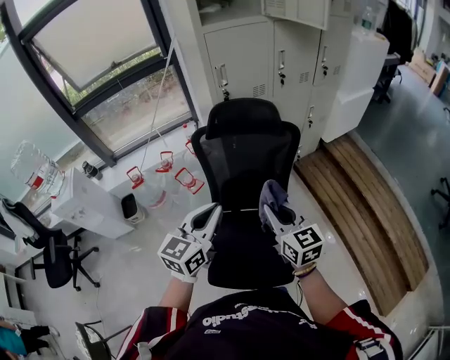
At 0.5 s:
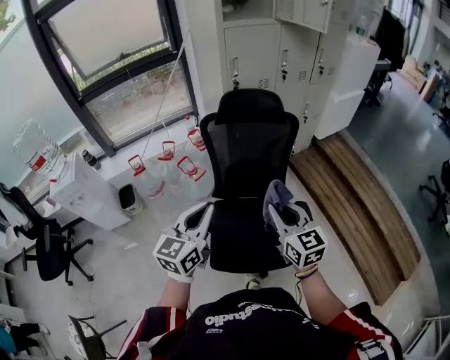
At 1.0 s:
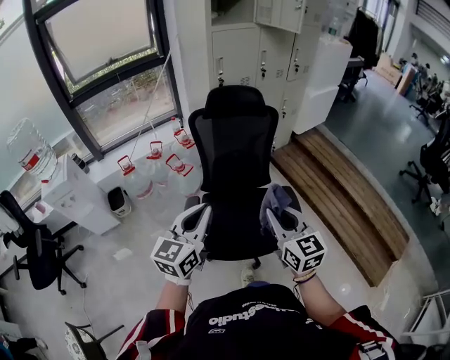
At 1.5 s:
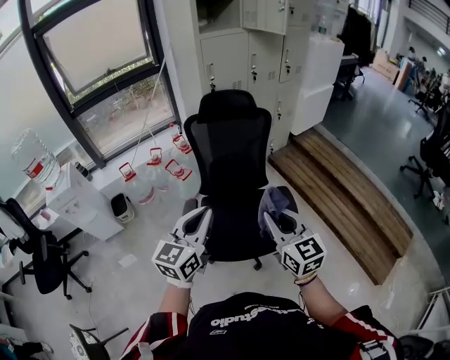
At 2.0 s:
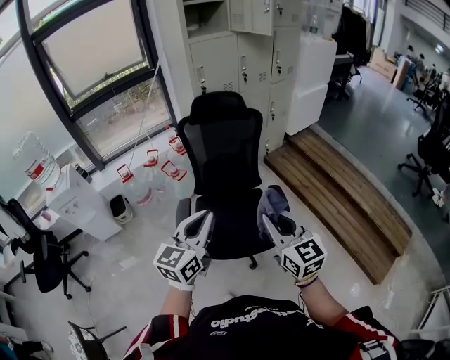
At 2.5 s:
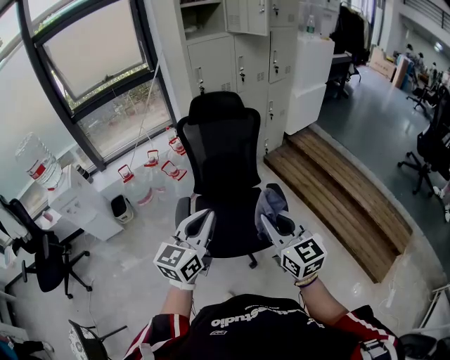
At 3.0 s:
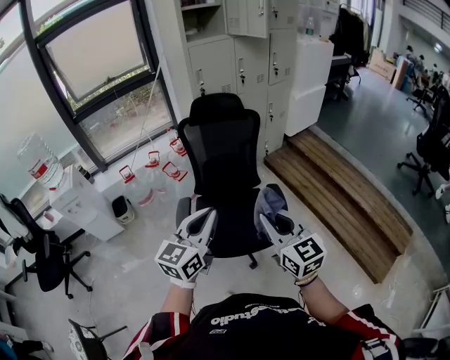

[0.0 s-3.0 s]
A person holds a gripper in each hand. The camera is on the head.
0.0 to 1.5 s: Both grippers move backward, roughly 30 cm.
1.5 to 3.0 s: The right gripper is displaced backward and to the right by roughly 10 cm, while the left gripper heads to the right and backward, covering approximately 10 cm.

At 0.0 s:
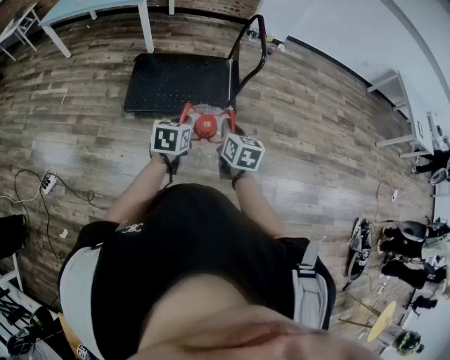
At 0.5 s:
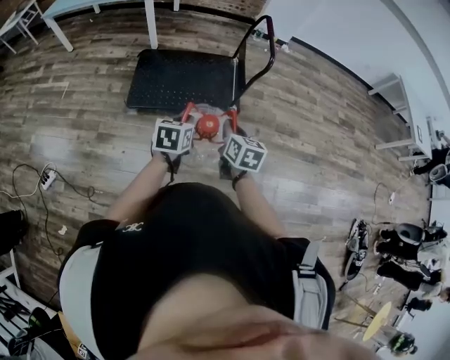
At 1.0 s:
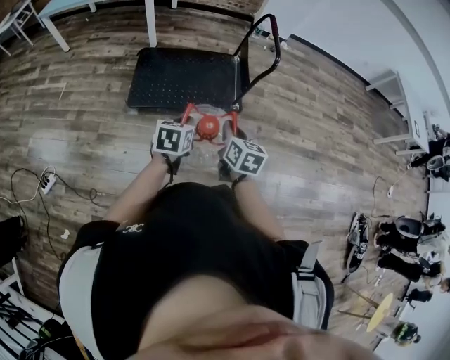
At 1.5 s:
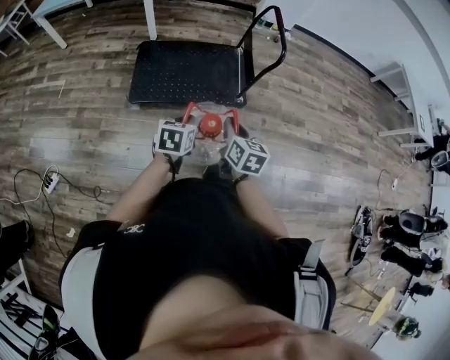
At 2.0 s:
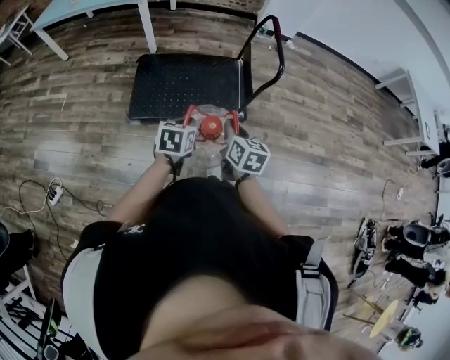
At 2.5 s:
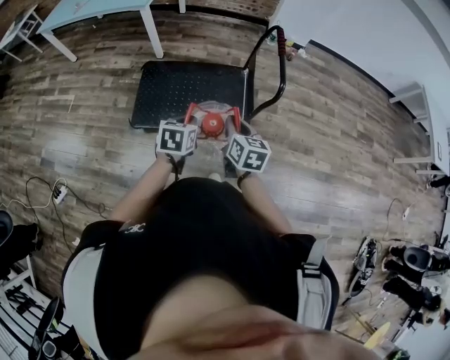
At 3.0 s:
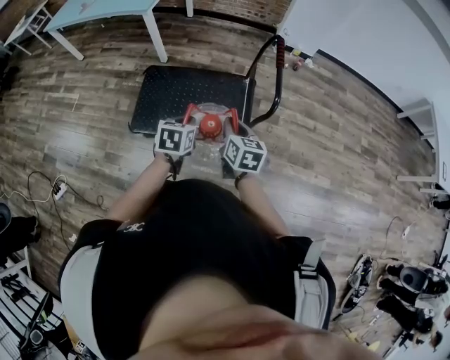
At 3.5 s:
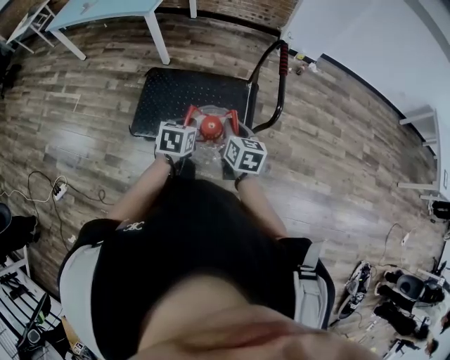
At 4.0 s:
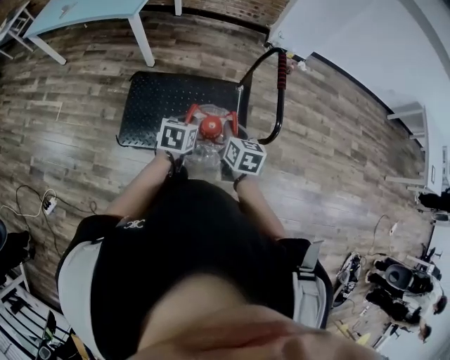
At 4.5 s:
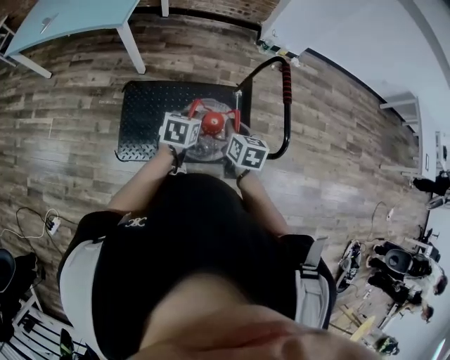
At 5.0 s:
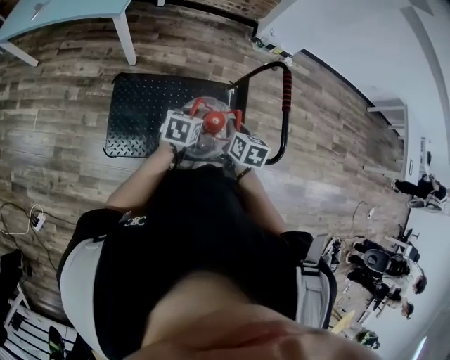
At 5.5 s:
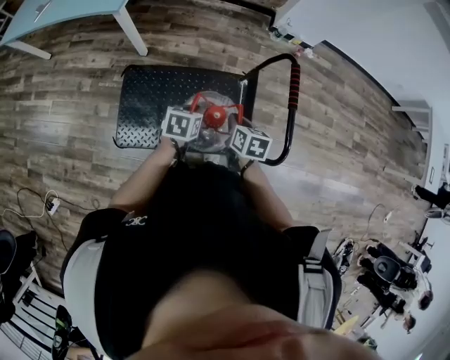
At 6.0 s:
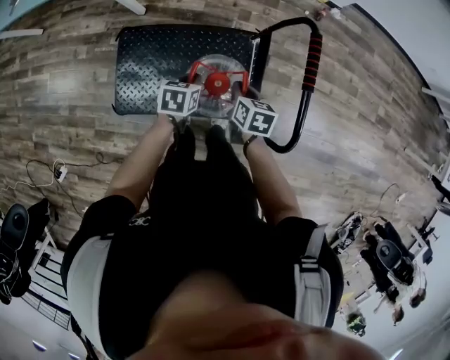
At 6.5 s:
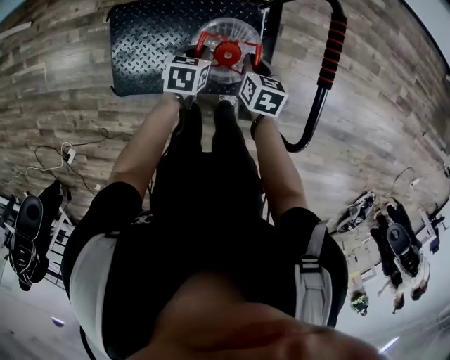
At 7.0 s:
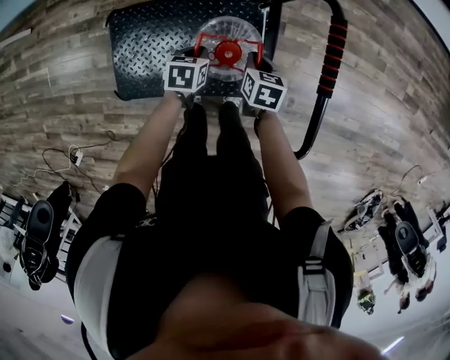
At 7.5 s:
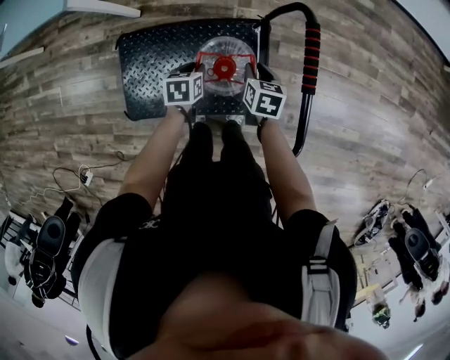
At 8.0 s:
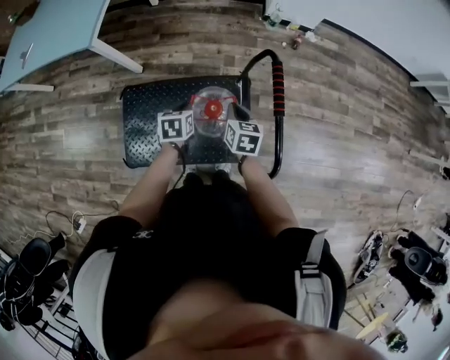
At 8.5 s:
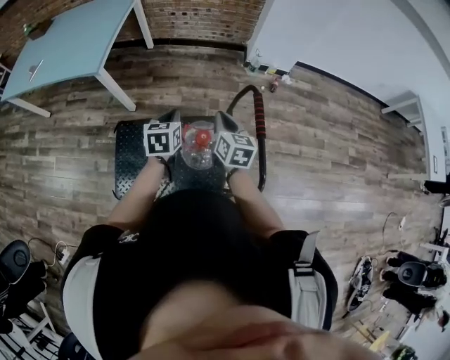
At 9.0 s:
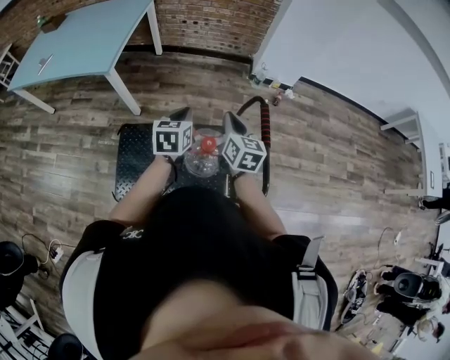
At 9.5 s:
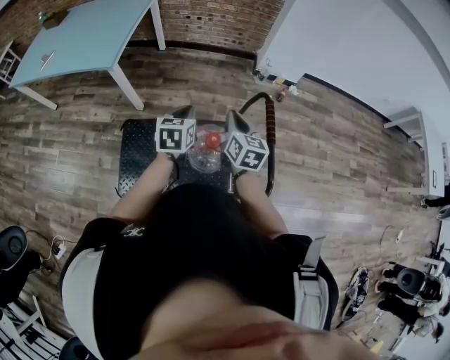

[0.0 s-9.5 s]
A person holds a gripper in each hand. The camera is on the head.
0.0 to 2.0 s: The grippers both shift forward and to the left by approximately 10 cm.
2.0 to 4.0 s: The grippers both shift forward by about 25 cm.
4.0 to 5.5 s: Both grippers move forward and downward, some 15 cm.
5.5 to 7.5 s: The right gripper goes some 15 cm downward, forward and to the right, while the left gripper moves downward and forward, approximately 15 cm, and opens its fingers.
7.5 to 9.5 s: The grippers both shift upward by approximately 25 cm. The left gripper swivels roughly 30 degrees, and closes up. The right gripper tilts its fingers about 30 degrees upward, and closes up.

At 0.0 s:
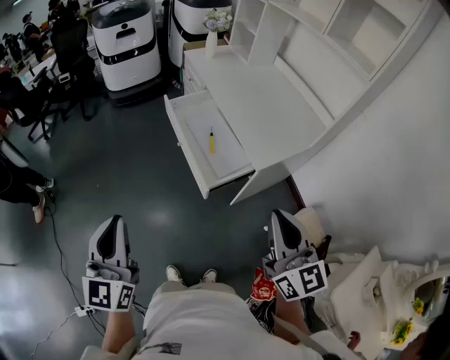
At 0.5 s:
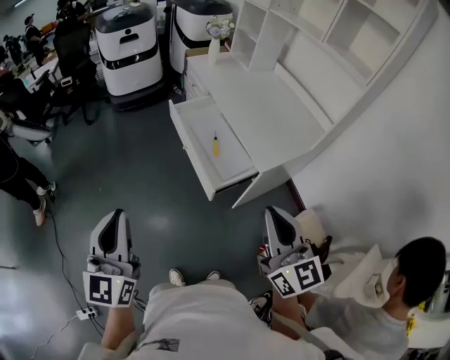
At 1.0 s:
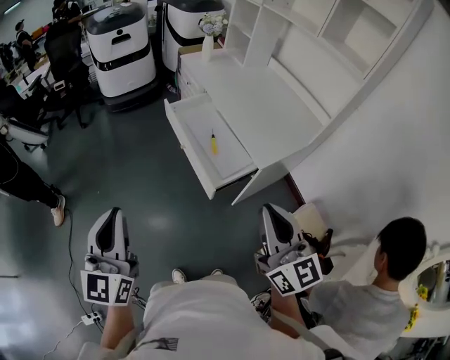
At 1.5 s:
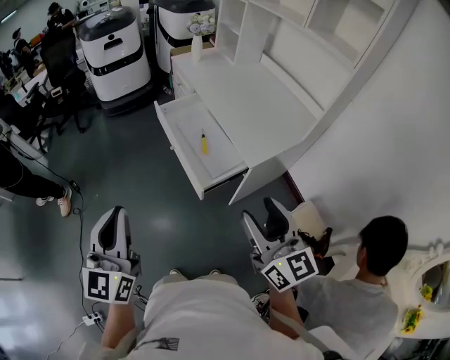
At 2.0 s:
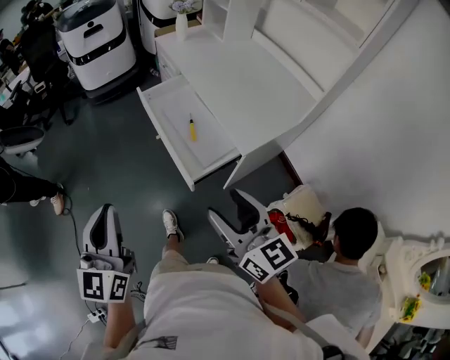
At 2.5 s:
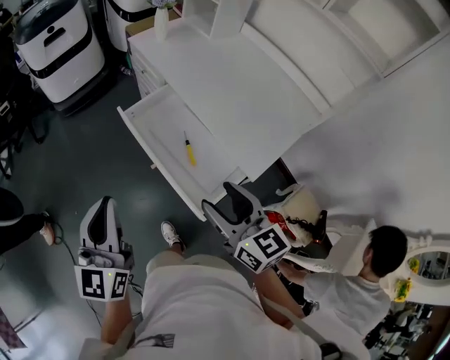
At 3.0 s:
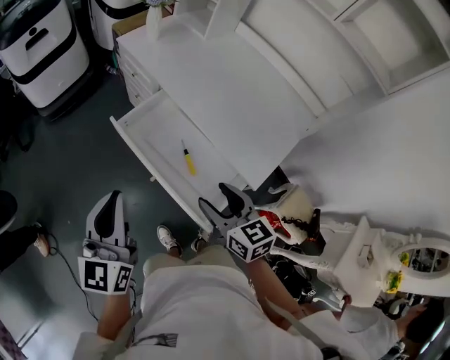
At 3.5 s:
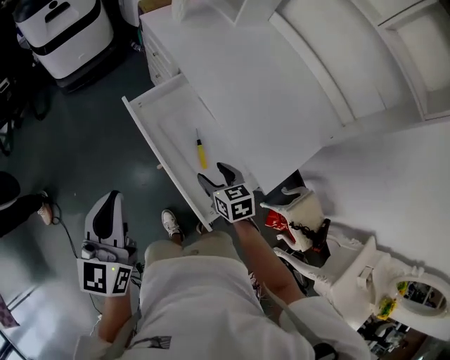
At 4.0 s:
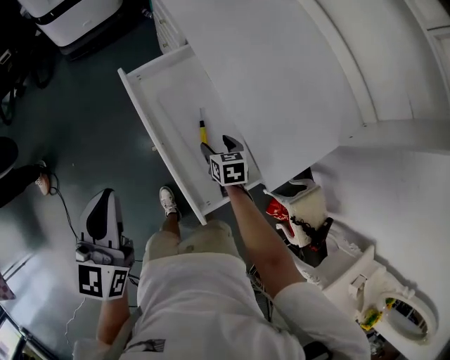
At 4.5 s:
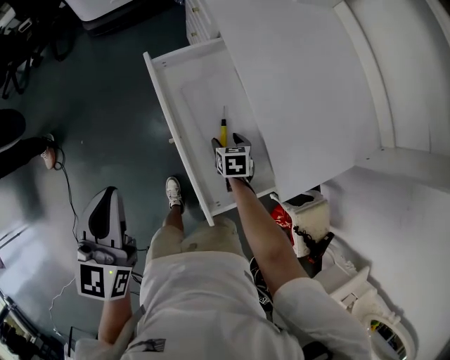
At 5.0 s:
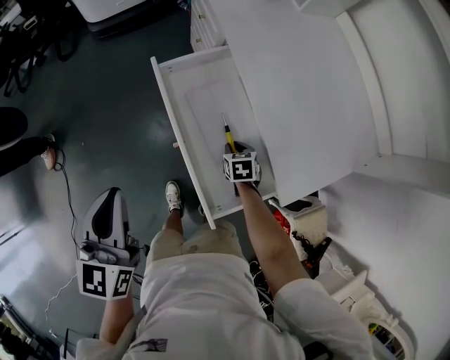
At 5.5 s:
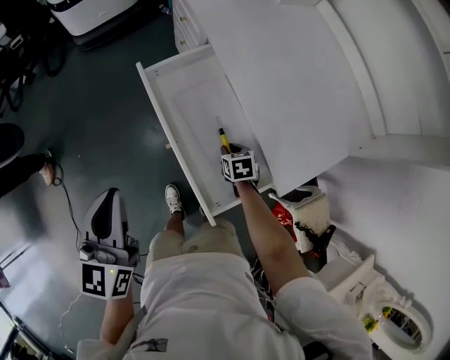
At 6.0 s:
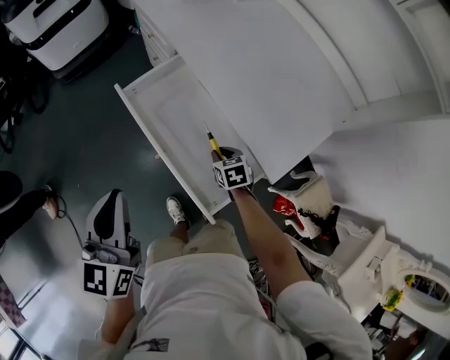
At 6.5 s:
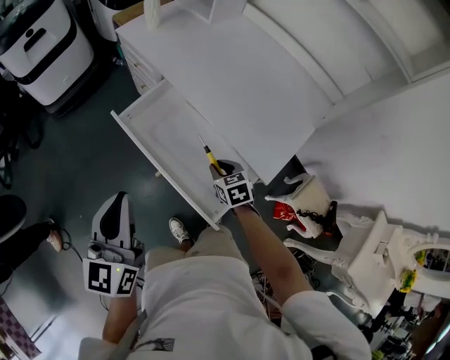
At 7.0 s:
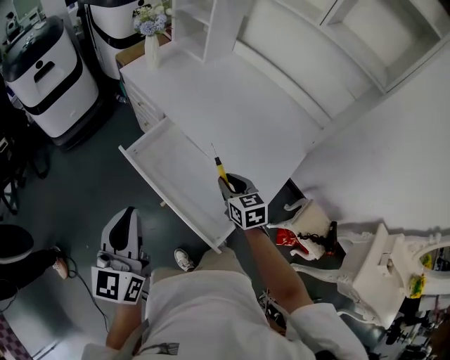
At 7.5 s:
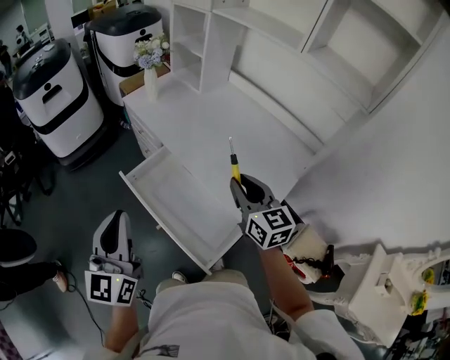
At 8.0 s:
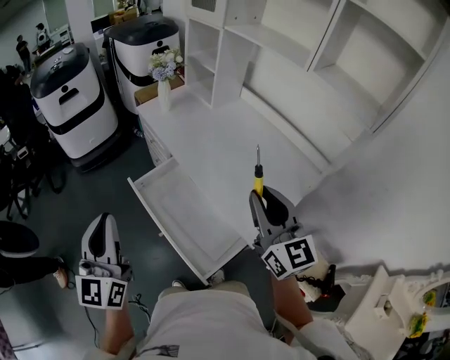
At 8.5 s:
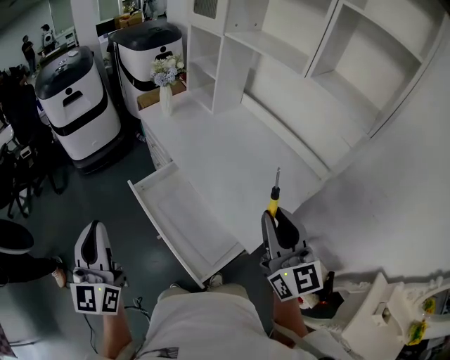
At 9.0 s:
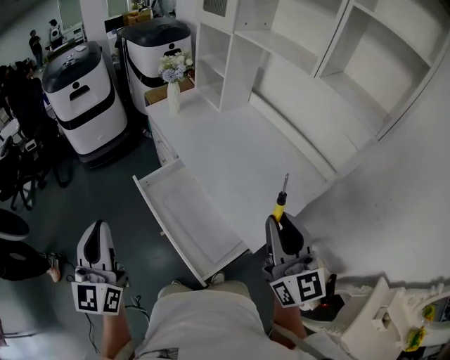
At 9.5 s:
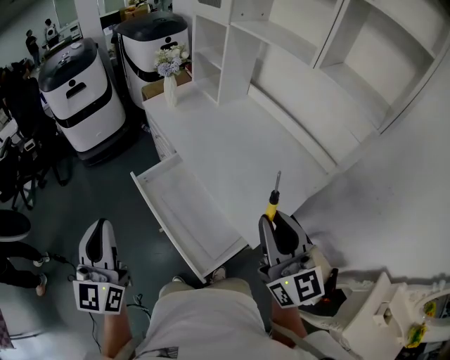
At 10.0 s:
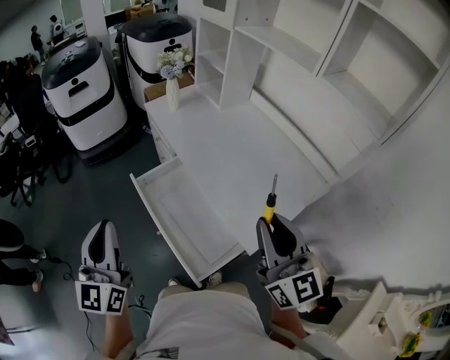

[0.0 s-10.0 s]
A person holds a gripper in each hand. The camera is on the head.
0.0 to 2.0 s: The right gripper heads downward, forward and to the left, covering some 10 cm, and opens. The left gripper travels forward by some 5 cm.
2.0 to 4.0 s: The left gripper moves forward, about 35 cm, while the right gripper moves forward and downward, roughly 60 cm, and tilts its fingers about 50 degrees downward.
4.0 to 6.0 s: The right gripper closes its fingers.
6.0 to 8.0 s: The right gripper goes some 50 cm upward, and tilts its fingers approximately 60 degrees upward. The left gripper is displaced upward by some 15 cm, and swivels roughly 20 degrees.
8.0 to 10.0 s: The right gripper ends up about 5 cm from where it was.

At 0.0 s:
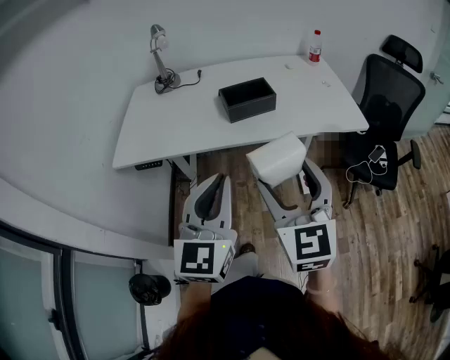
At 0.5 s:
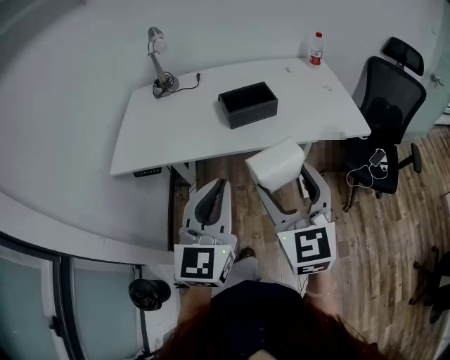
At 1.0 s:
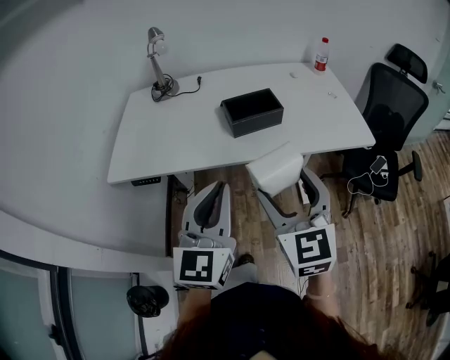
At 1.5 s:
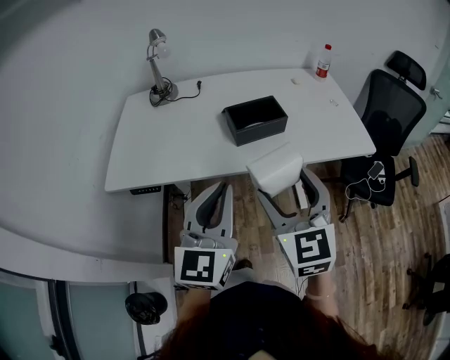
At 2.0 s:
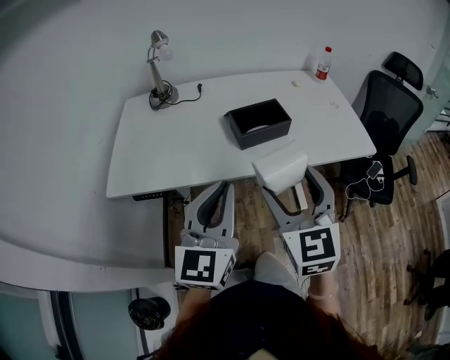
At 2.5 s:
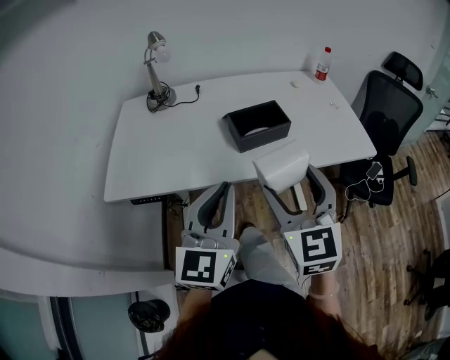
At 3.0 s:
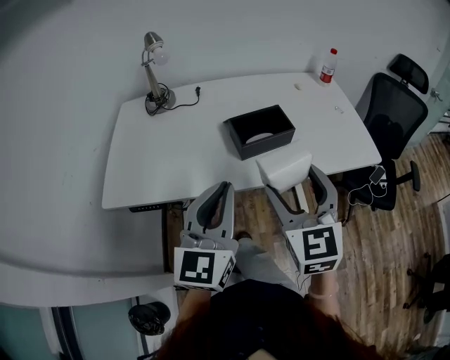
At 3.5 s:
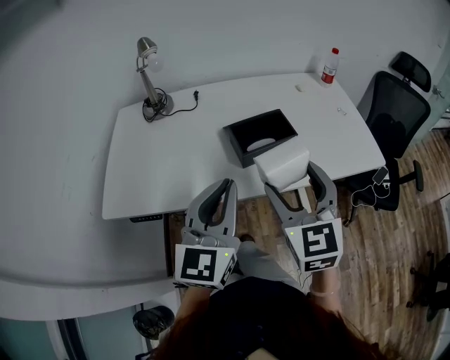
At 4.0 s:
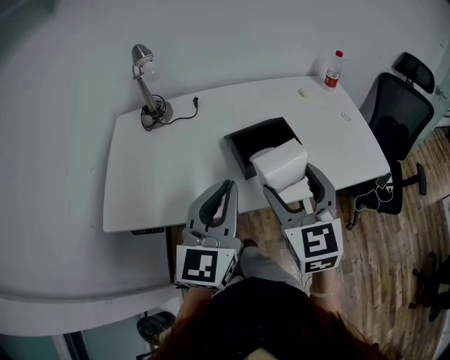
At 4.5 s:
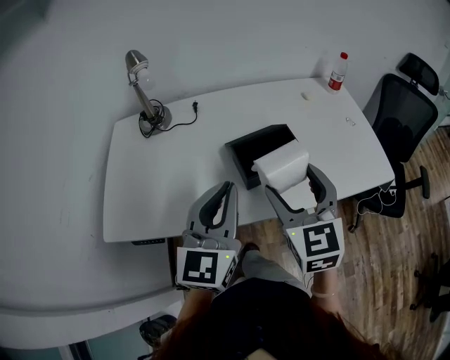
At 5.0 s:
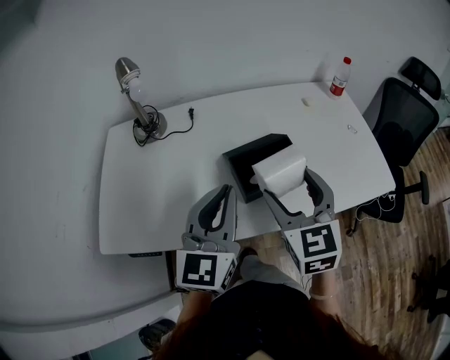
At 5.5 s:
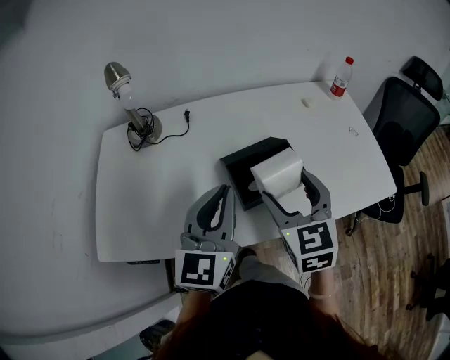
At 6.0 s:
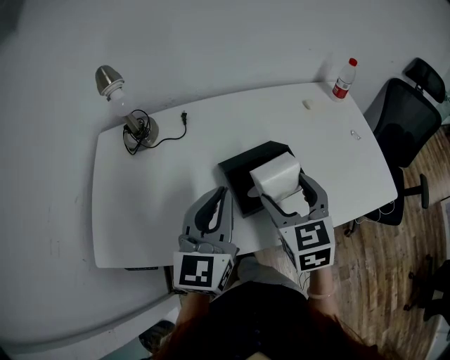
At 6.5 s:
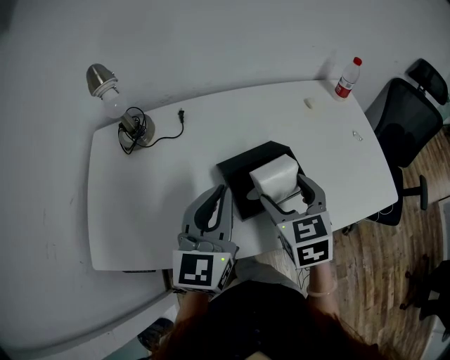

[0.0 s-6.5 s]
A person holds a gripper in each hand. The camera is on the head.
0.0 to 2.0 s: The two grippers go about 15 cm forward and to the left.
2.0 to 4.5 s: Both grippers travel together forward, some 15 cm.
4.5 to 6.5 s: The right gripper heads forward and downward, covering some 15 cm, and changes its angle by approximately 20 degrees. Meanwhile the left gripper moves forward, about 10 cm.
